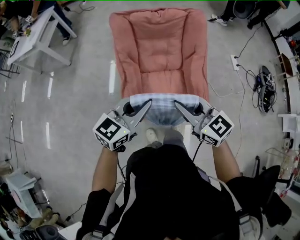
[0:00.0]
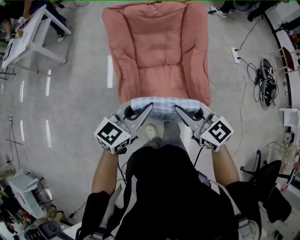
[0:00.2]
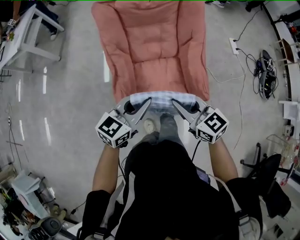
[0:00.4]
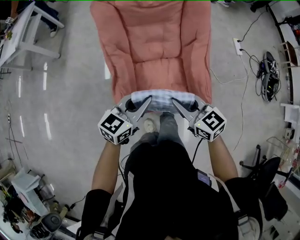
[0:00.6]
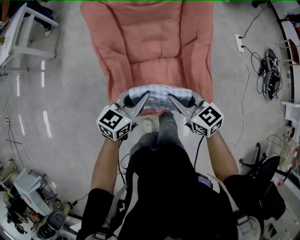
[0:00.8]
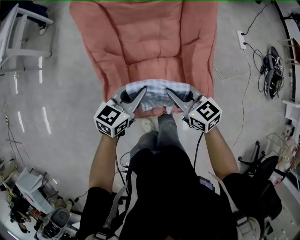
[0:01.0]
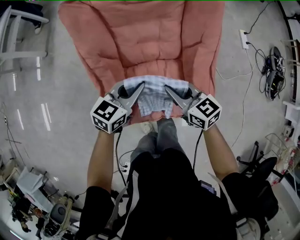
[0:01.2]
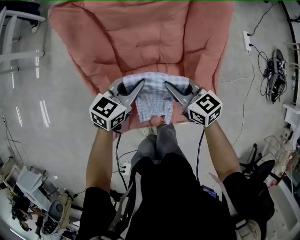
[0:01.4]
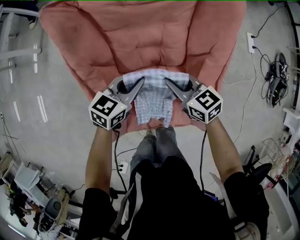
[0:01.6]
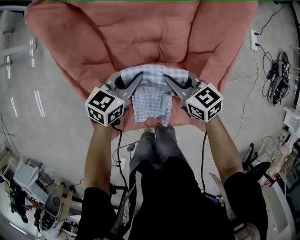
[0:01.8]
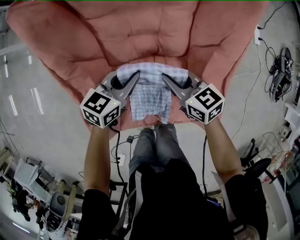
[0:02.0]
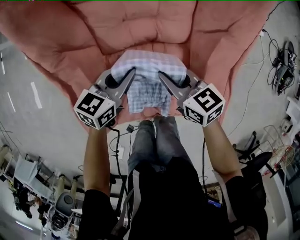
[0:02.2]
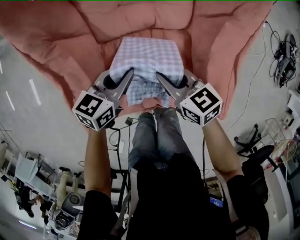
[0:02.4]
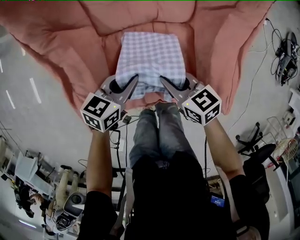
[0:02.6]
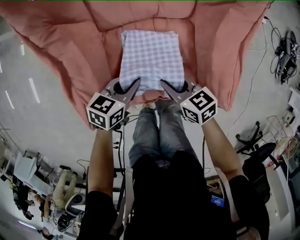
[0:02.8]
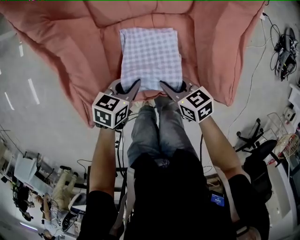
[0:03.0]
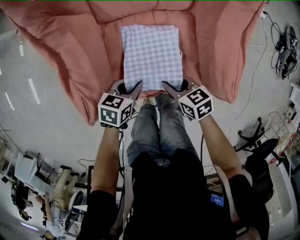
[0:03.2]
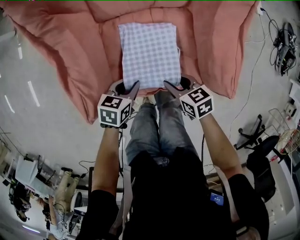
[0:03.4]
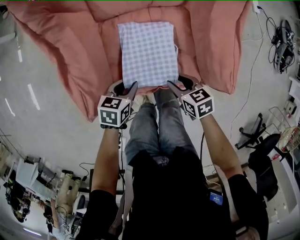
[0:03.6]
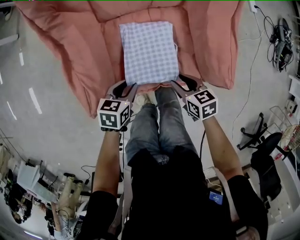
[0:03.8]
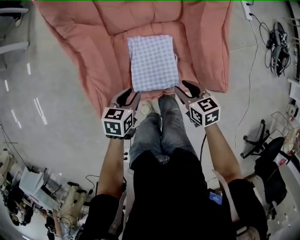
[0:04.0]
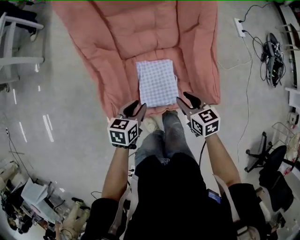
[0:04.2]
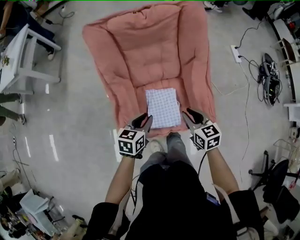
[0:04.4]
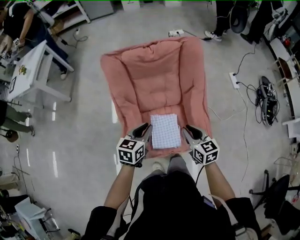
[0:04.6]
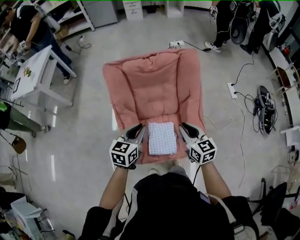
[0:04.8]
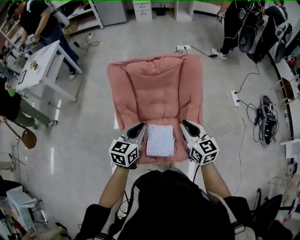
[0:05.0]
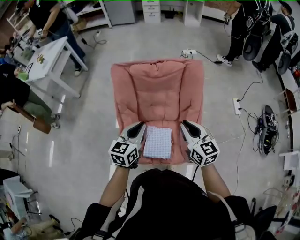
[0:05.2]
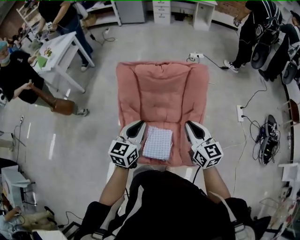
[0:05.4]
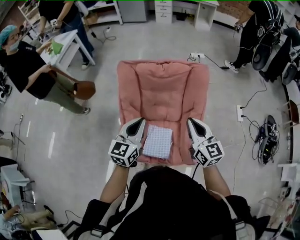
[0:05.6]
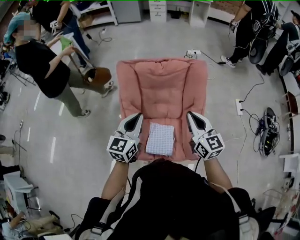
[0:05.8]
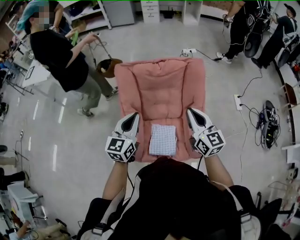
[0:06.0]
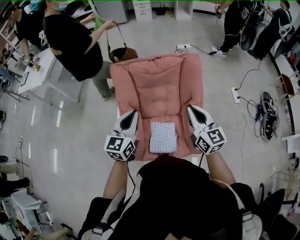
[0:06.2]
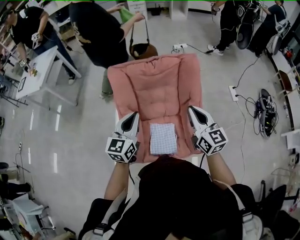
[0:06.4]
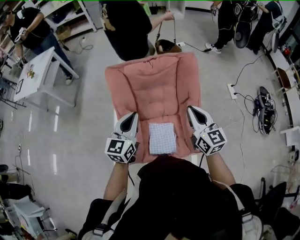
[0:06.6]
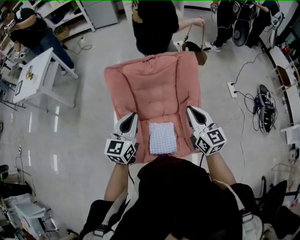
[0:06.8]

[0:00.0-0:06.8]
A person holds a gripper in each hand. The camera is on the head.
0:00.0 to 0:01.4: The right gripper is displaced downward and forward by about 40 cm, and rotates some 20 degrees, while the left gripper is displaced forward and downward by about 40 cm, and changes its angle by about 20 degrees.
0:01.4 to 0:02.8: Both grippers travel together downward, roughly 20 cm. The left gripper changes its angle by about 20 degrees.
0:02.8 to 0:04.0: The right gripper moves roughly 5 cm downward and comes back. The left gripper moves about 5 cm.
0:04.0 to 0:05.4: Both grippers travel together upward, approximately 40 cm. The right gripper angles its fingers upward, by approximately 40 degrees. Meanwhile the left gripper angles its fingers upward, by some 40 degrees.
0:05.4 to 0:06.8: The left gripper goes roughly 5 cm to the left.

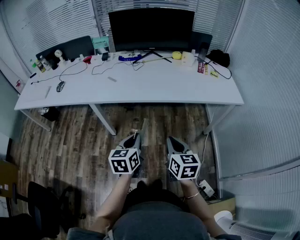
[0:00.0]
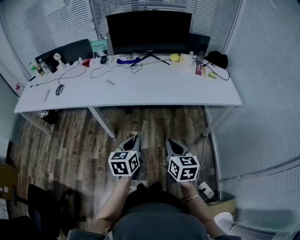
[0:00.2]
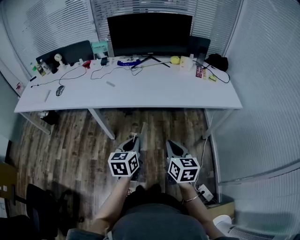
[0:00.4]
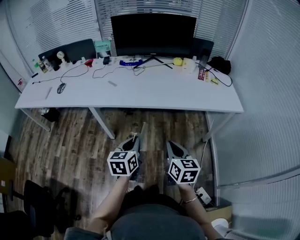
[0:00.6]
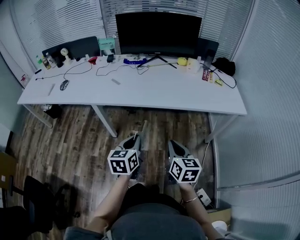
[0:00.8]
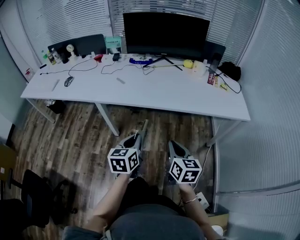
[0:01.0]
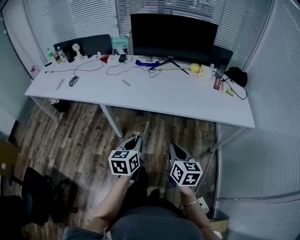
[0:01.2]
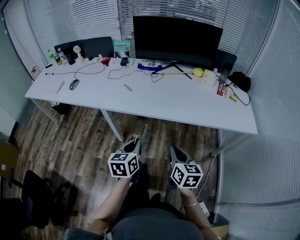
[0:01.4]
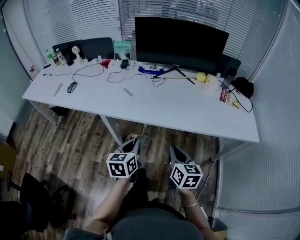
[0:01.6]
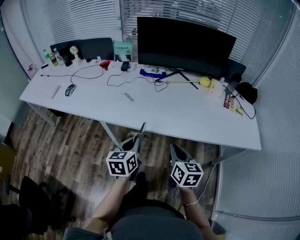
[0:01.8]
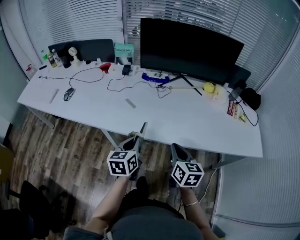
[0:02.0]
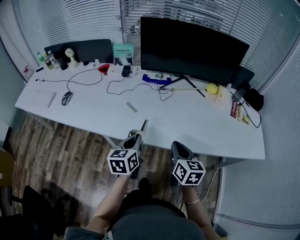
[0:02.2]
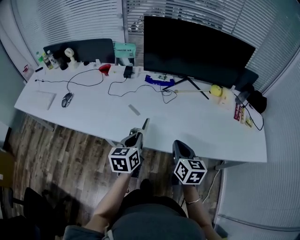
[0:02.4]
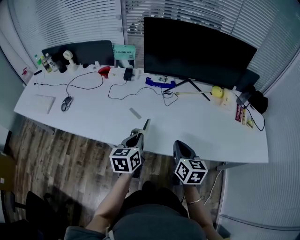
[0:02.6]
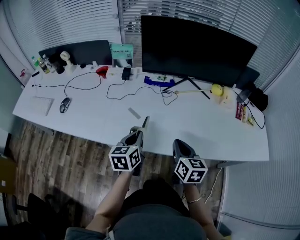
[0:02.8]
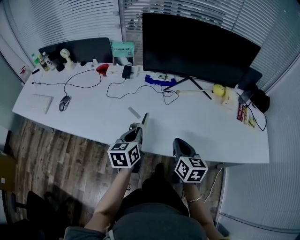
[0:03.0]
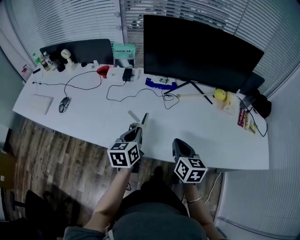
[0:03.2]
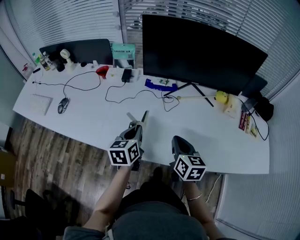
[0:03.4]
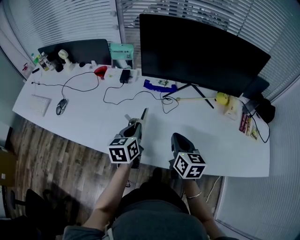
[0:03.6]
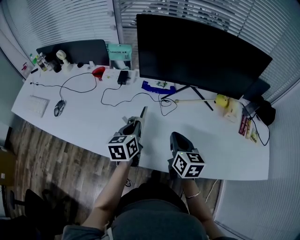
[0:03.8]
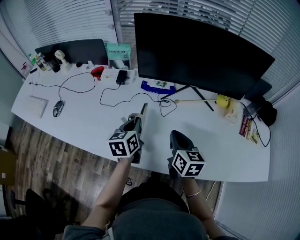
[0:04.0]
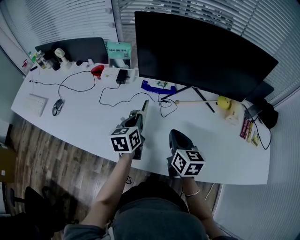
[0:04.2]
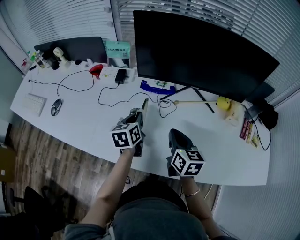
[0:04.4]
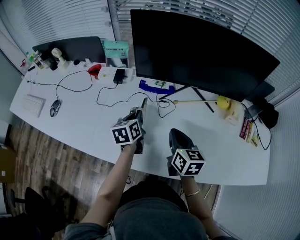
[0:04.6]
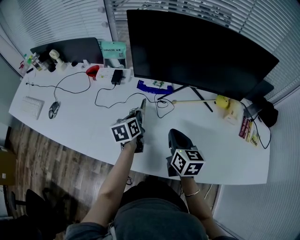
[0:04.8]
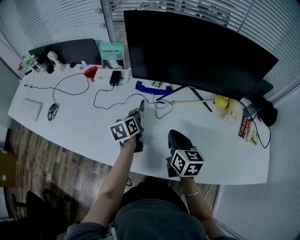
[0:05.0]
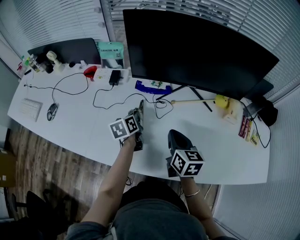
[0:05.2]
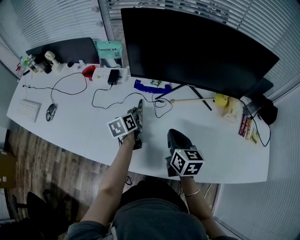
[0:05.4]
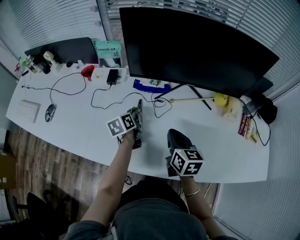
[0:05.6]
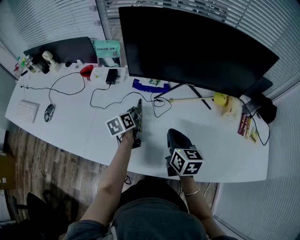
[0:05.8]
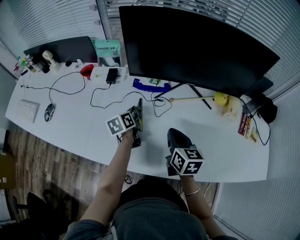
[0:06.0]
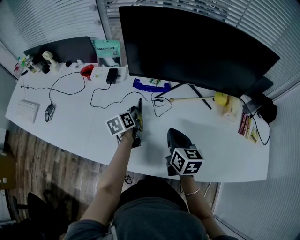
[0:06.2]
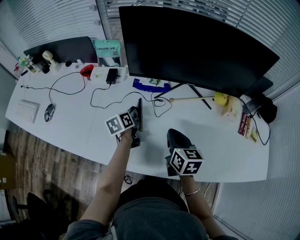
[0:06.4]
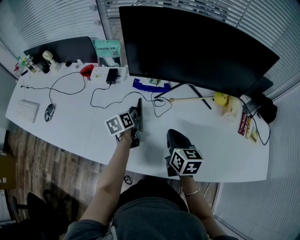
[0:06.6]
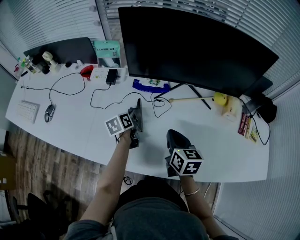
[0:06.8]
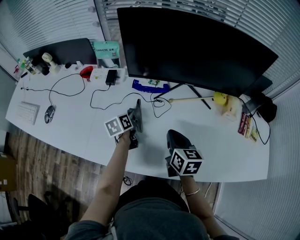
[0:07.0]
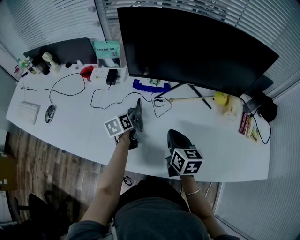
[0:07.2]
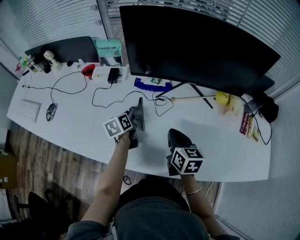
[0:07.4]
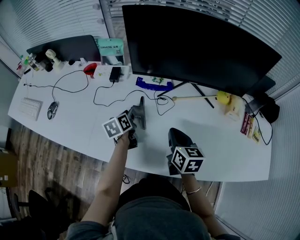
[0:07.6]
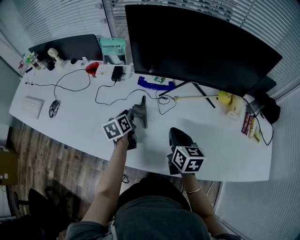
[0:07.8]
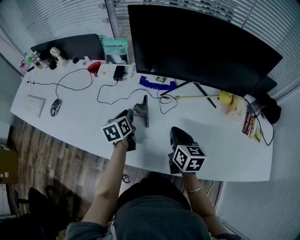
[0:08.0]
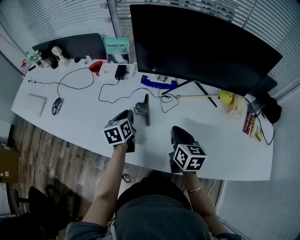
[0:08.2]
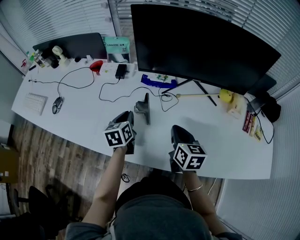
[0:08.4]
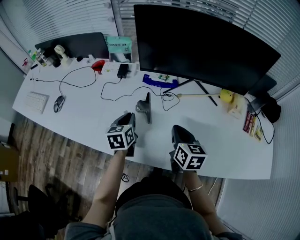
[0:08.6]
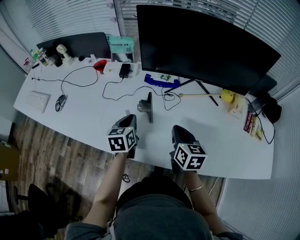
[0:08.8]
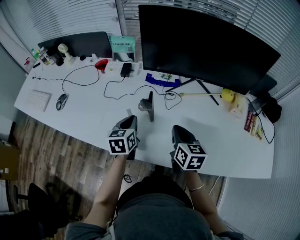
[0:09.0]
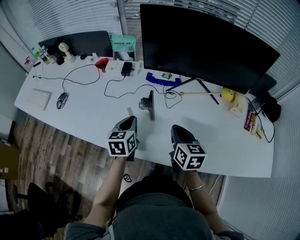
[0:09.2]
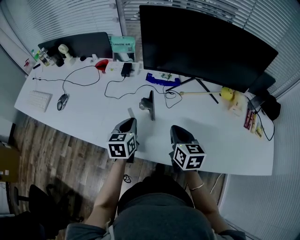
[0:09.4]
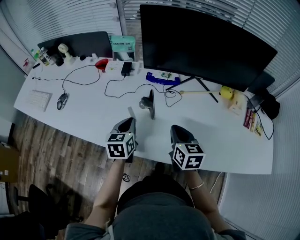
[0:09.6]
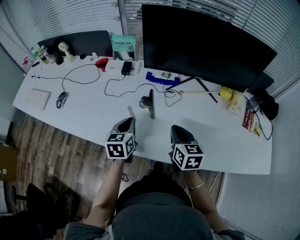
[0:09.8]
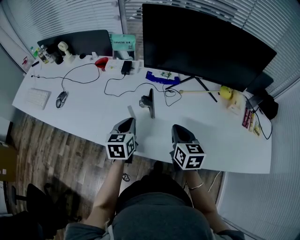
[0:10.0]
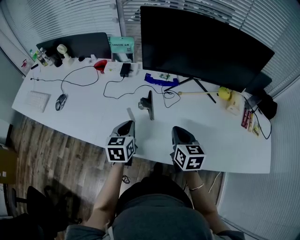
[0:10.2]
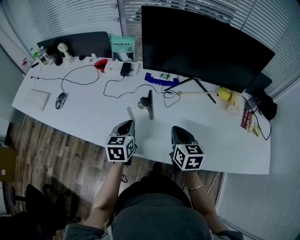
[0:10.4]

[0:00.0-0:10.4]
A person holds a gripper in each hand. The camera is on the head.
0:00.0 to 0:01.4: The grippers both shift forward by about 5 cm.
0:01.4 to 0:03.0: Both grippers move forward, some 30 cm.
0:03.0 to 0:04.4: Both grippers move forward, approximately 15 cm.
0:04.4 to 0:06.0: The left gripper goes some 10 cm downward and forward.
0:06.0 to 0:07.4: The left gripper opens.
0:07.4 to 0:09.0: The left gripper travels backward and upward by some 10 cm, and changes its angle by about 20 degrees.
0:09.0 to 0:10.4: The grippers move only a little.

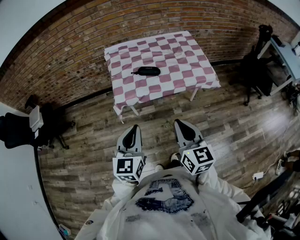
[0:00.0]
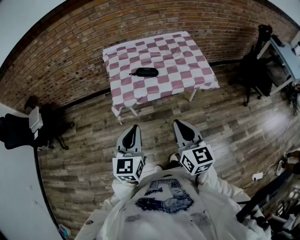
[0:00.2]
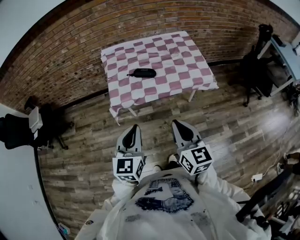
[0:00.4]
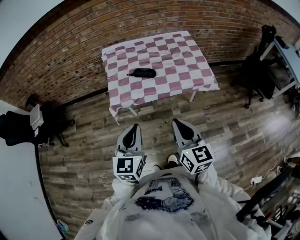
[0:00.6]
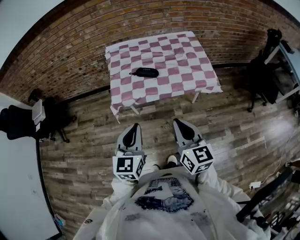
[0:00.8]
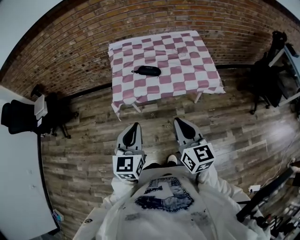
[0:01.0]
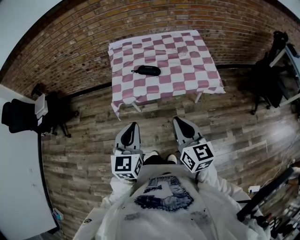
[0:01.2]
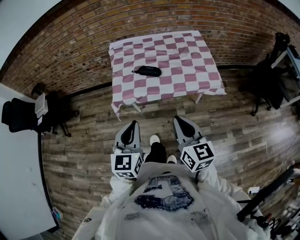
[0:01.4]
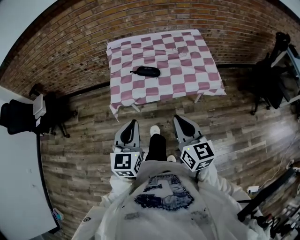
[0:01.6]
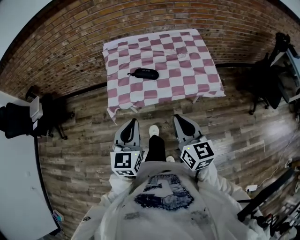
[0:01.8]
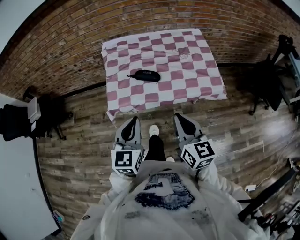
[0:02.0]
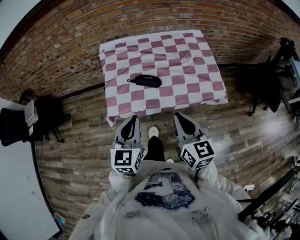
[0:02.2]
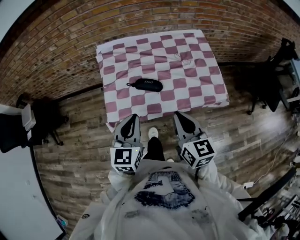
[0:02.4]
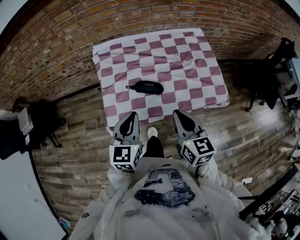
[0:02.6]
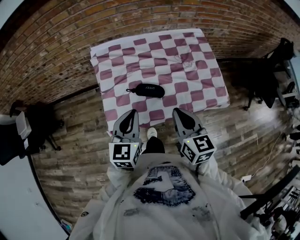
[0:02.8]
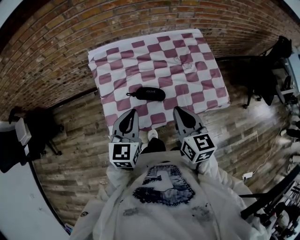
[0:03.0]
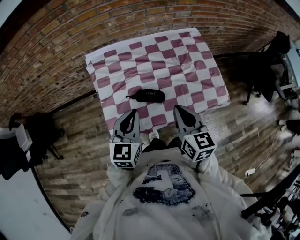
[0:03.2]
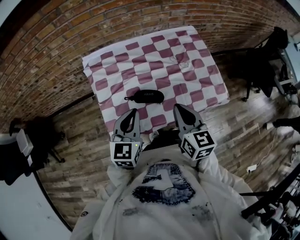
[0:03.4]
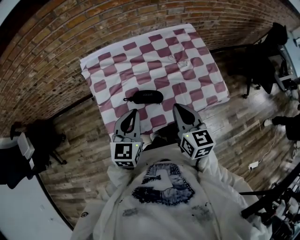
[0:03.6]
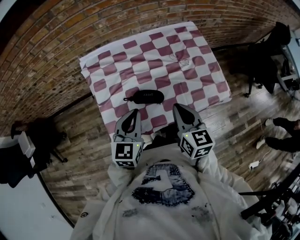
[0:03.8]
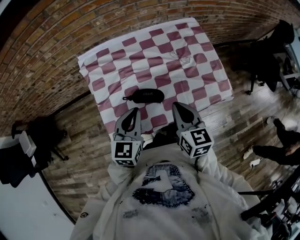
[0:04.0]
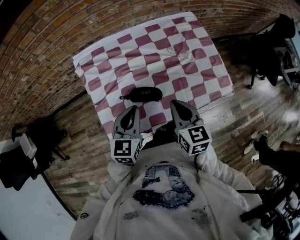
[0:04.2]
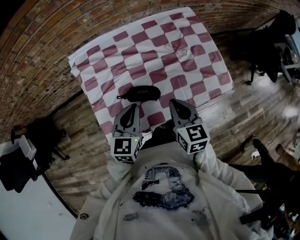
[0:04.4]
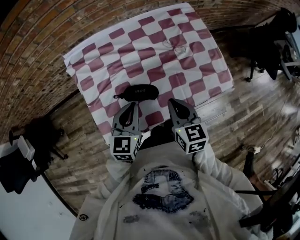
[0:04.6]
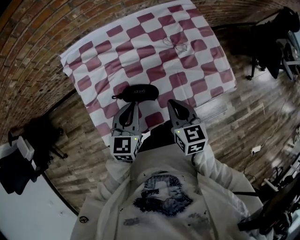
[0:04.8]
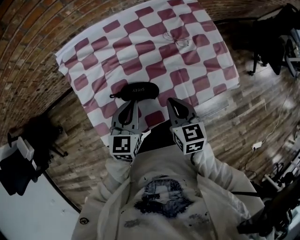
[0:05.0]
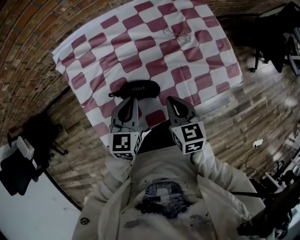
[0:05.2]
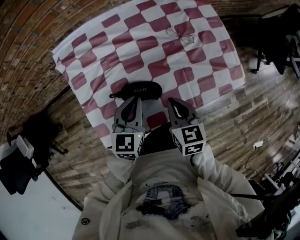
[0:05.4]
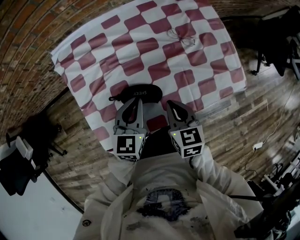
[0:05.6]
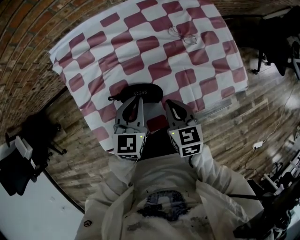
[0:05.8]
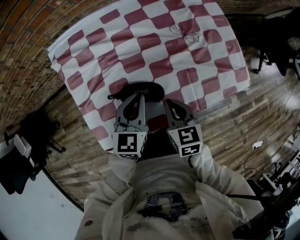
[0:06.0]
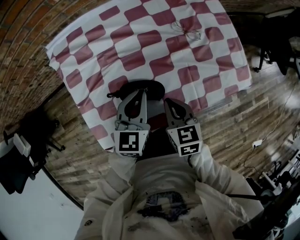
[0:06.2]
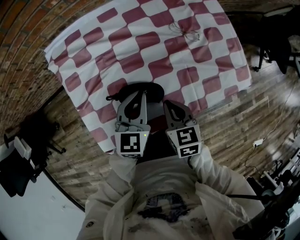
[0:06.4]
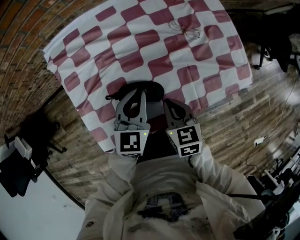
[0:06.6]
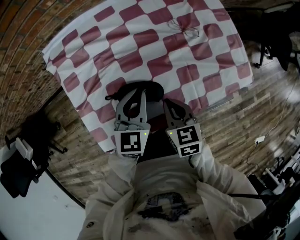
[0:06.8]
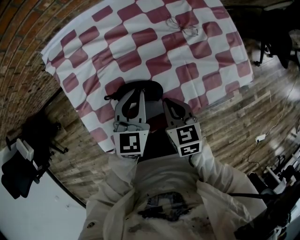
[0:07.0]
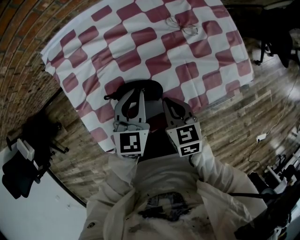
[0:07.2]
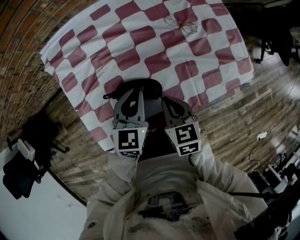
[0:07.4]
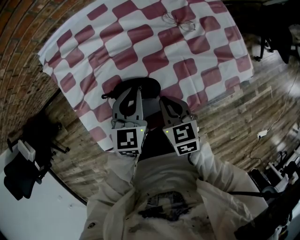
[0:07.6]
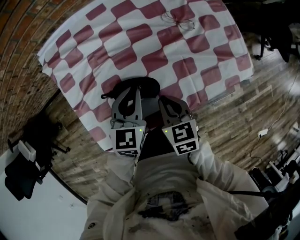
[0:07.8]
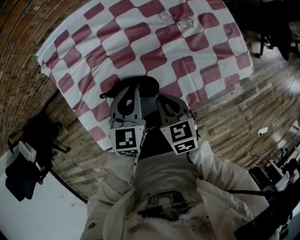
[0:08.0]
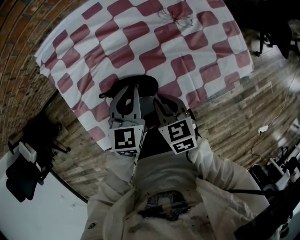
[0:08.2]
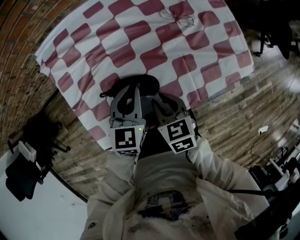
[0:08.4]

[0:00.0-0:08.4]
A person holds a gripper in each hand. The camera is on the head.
0:00.0 to 0:01.4: The left gripper goes approximately 5 cm to the right; the right gripper heads to the right and forward, covering approximately 10 cm.
0:01.4 to 0:02.8: Both grippers travel together forward, approximately 30 cm.
0:02.8 to 0:04.2: The grippers both shift forward and downward by approximately 10 cm.
0:04.2 to 0:05.6: The right gripper heads downward, covering some 15 cm, while the left gripper shifts about 10 cm downward and forward.
0:05.6 to 0:07.0: The grippers move only a little.
0:07.0 to 0:08.4: The grippers move only a little.
